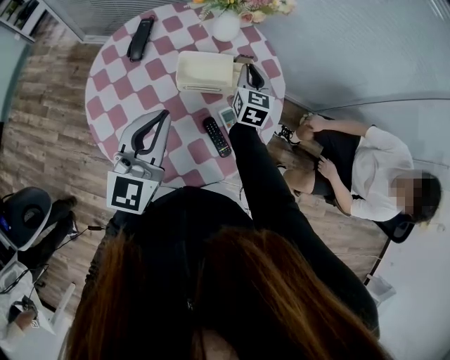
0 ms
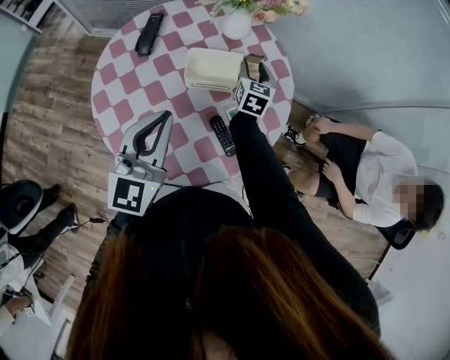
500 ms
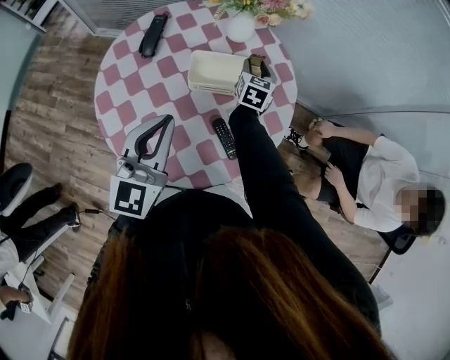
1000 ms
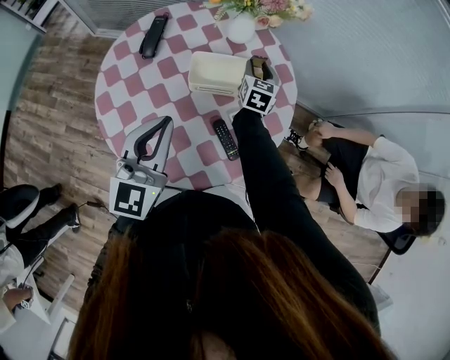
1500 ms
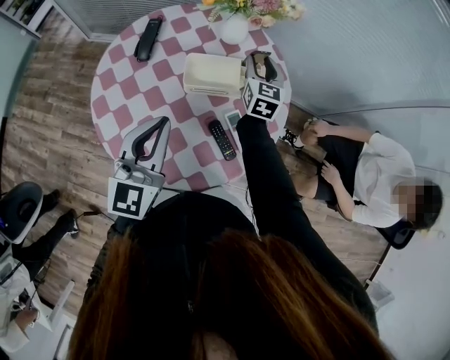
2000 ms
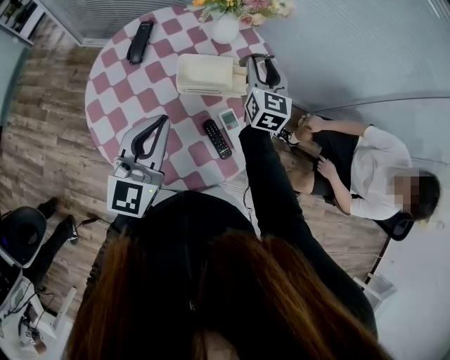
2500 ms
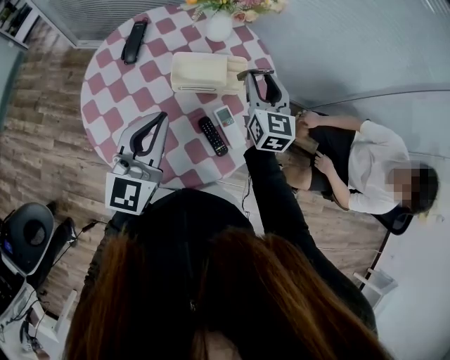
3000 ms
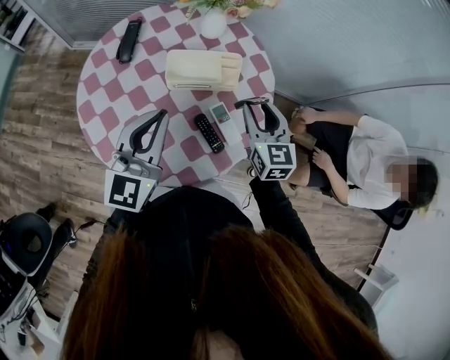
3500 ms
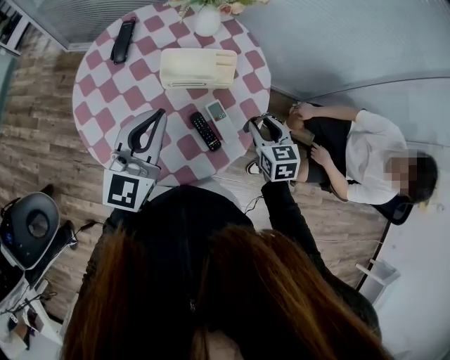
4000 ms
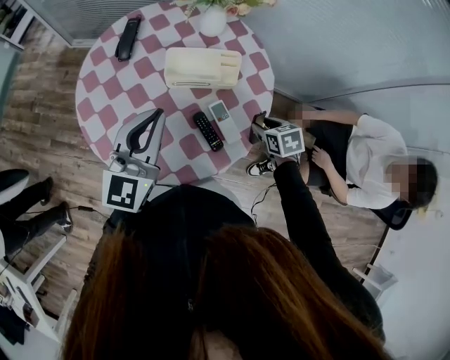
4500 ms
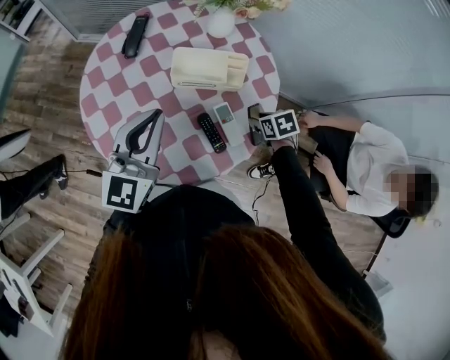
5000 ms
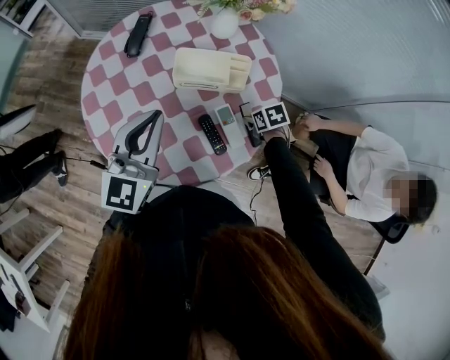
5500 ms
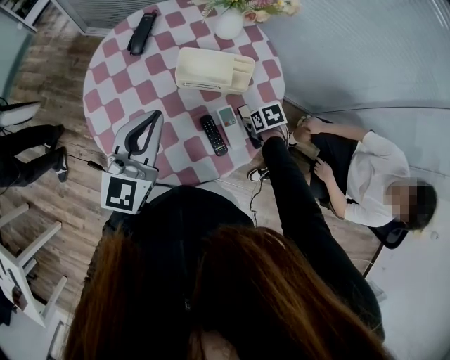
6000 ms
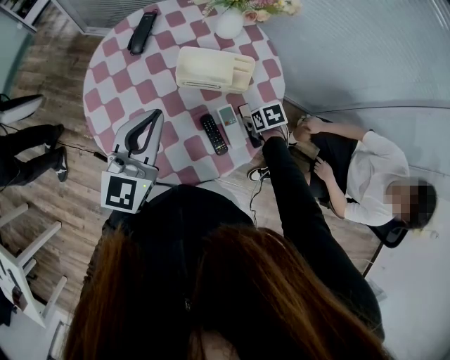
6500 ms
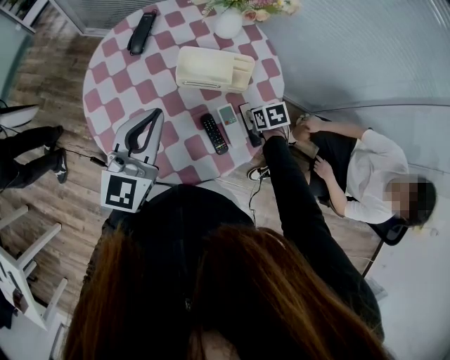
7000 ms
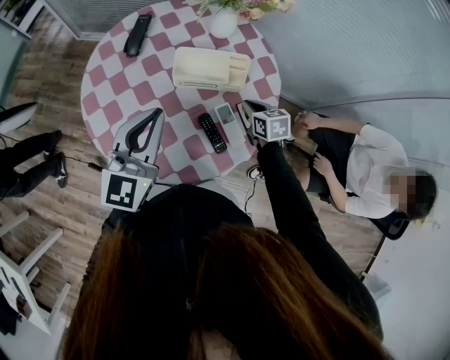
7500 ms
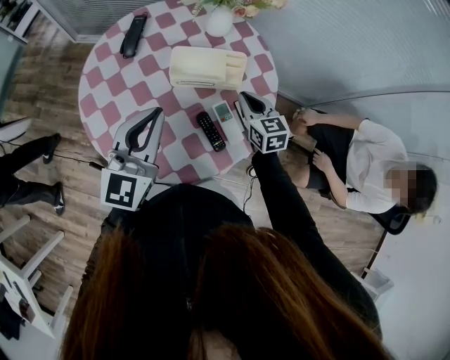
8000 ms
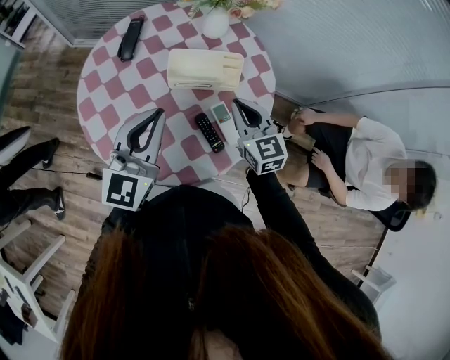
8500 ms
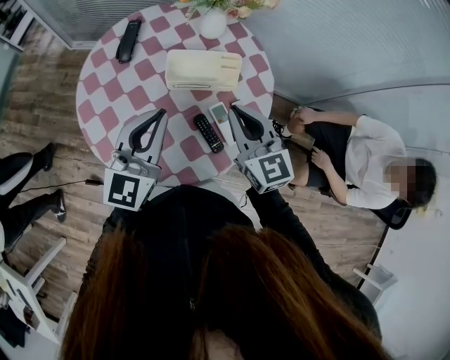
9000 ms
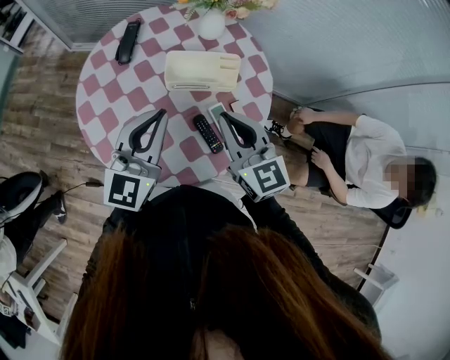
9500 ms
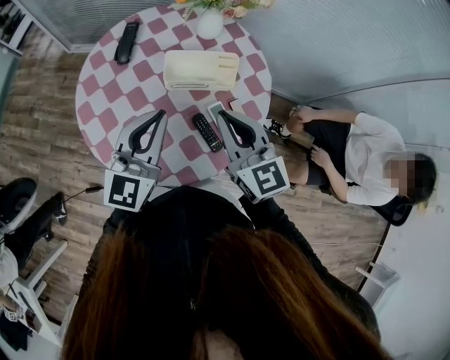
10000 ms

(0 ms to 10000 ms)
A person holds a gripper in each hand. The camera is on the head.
0 ms - 2000 ms: The right gripper opens its fingers.
2000 ms - 4000 ms: The right gripper goes some 25 cm backward and to the right, and swivels about 20 degrees.
4000 ms - 6000 ms: The right gripper moves downward, some 15 cm, and tips its fingers downward by approximately 30 degrees.
6000 ms - 8000 ms: The right gripper heads upward, covering approximately 15 cm, tilts its fingers about 40 degrees upward, and closes.
8000 ms - 10000 ms: The right gripper moves upward, backward and to the left, some 20 cm.

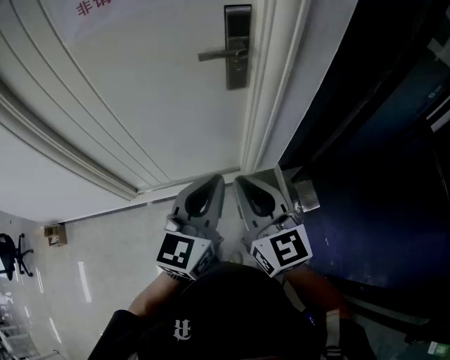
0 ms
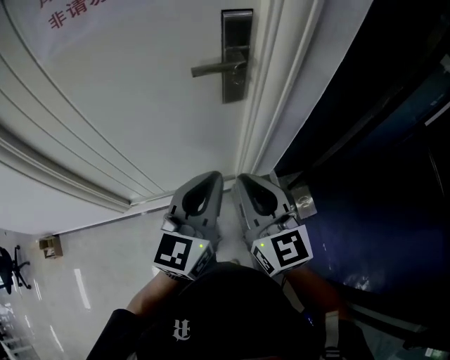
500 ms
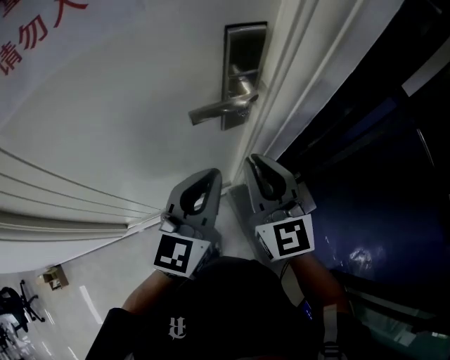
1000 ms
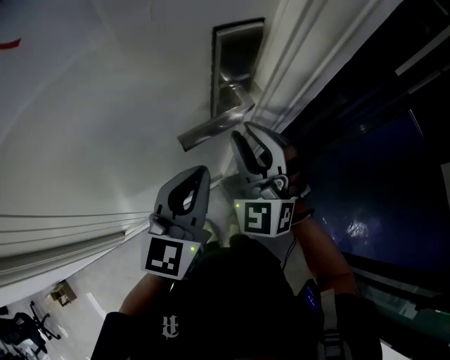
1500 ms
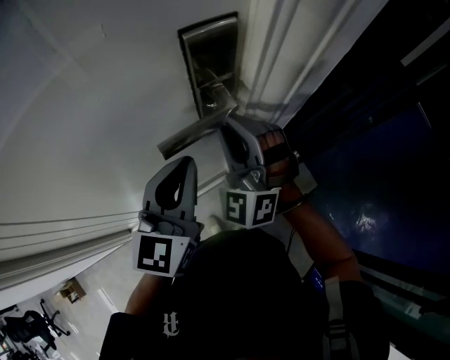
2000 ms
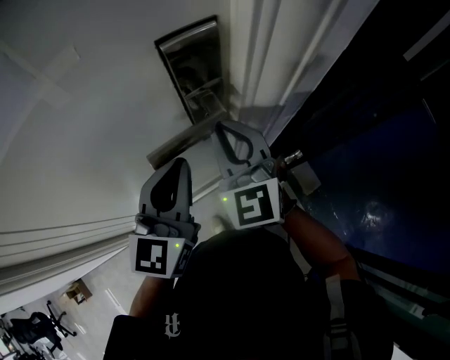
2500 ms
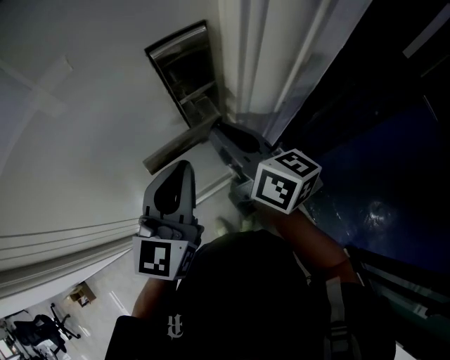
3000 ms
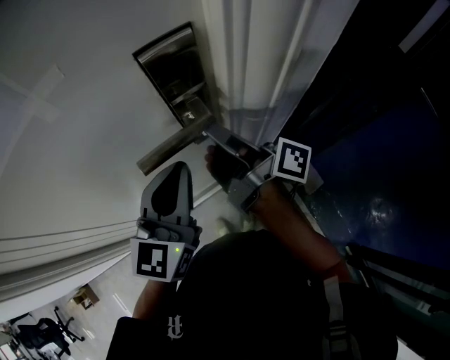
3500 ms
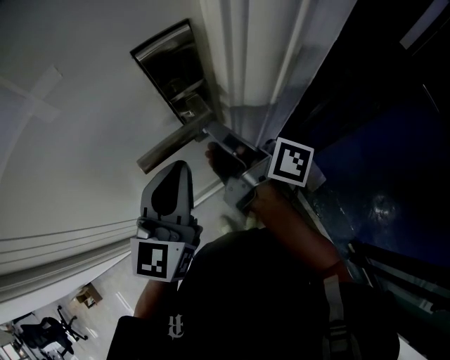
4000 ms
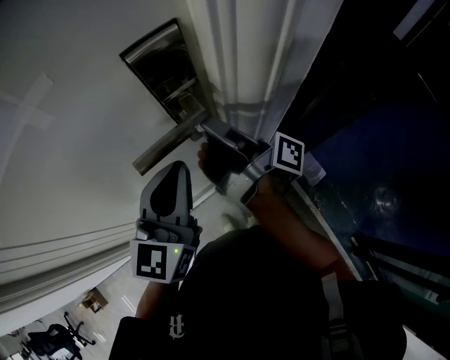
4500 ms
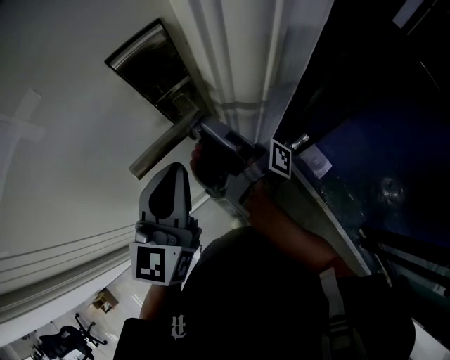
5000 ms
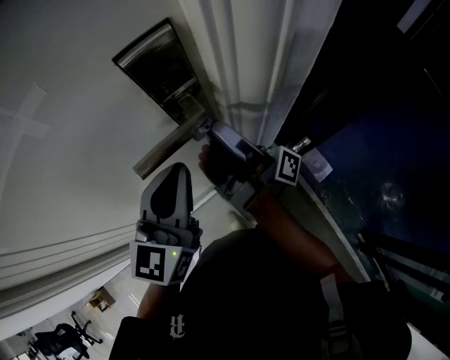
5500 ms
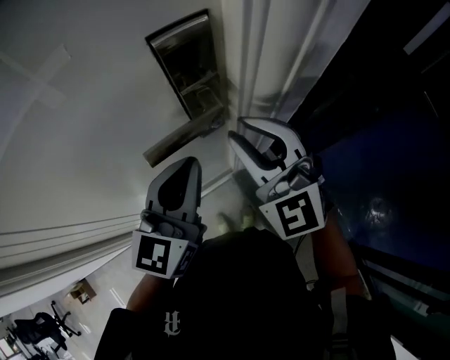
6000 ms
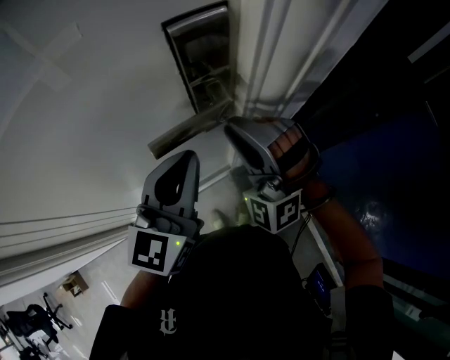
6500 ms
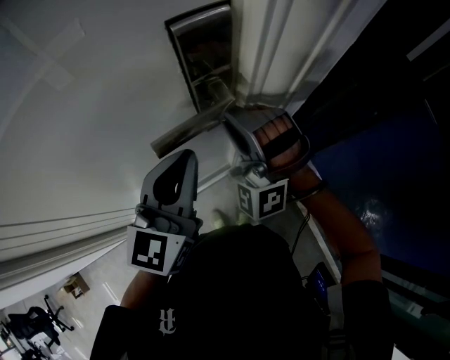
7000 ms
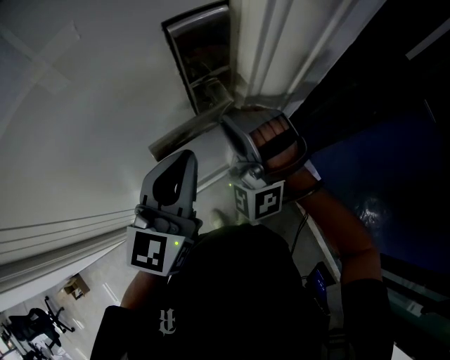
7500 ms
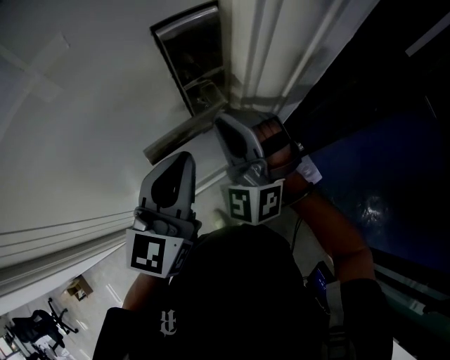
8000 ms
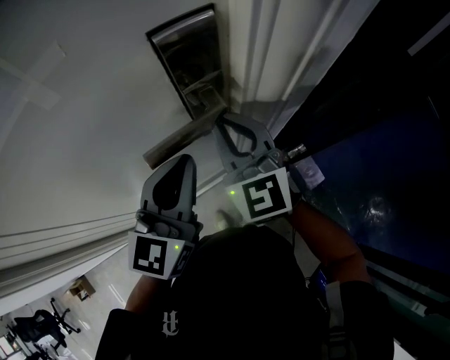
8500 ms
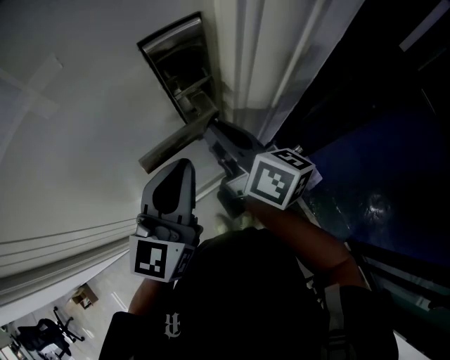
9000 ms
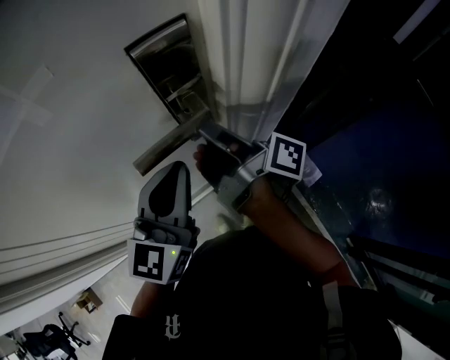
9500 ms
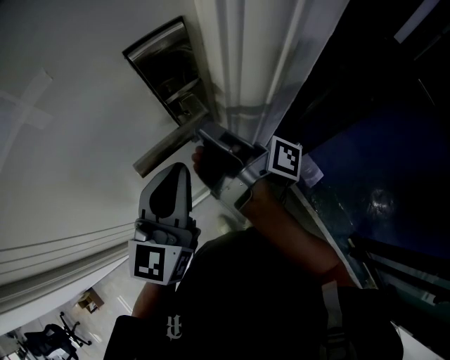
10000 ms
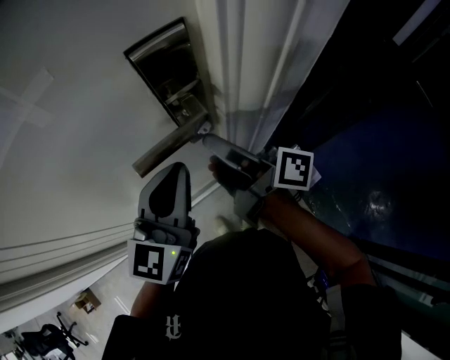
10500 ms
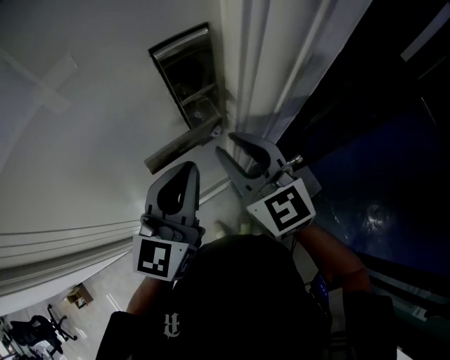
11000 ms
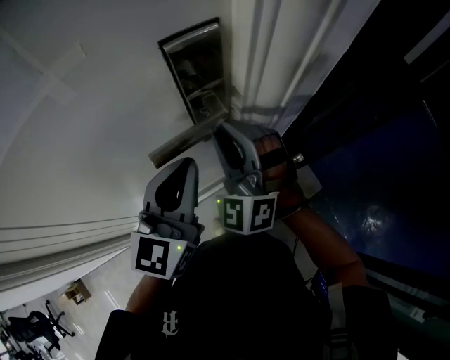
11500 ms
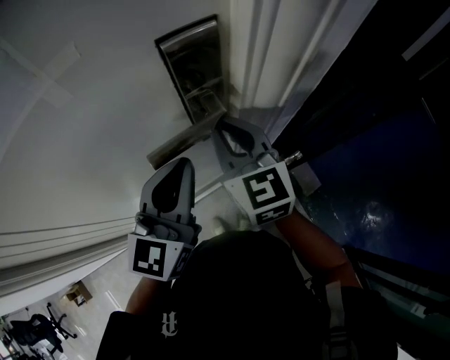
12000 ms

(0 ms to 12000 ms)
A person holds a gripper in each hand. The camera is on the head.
0 ms - 2000 ms: Both grippers move forward, about 30 cm. The right gripper rotates around the line of its fingers by roughly 60 degrees, counterclockwise from behind.
2000 ms - 4000 ms: The right gripper rotates around the line of its fingers by roughly 130 degrees, clockwise from behind.
4000 ms - 6000 ms: The right gripper heads backward, covering about 5 cm, and twists about 110 degrees counterclockwise, seen from behind.
6000 ms - 8000 ms: The right gripper changes place by roughly 5 cm, and turns by about 30 degrees.
8000 ms - 10000 ms: The right gripper rotates around the line of its fingers by about 160 degrees, clockwise from behind.
10000 ms - 12000 ms: The right gripper rotates around the line of its fingers by some 100 degrees, counterclockwise from behind.

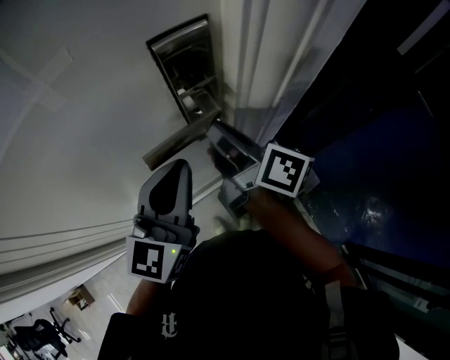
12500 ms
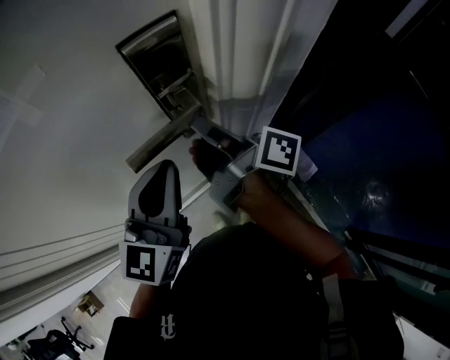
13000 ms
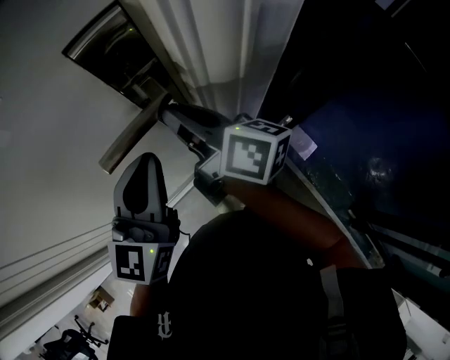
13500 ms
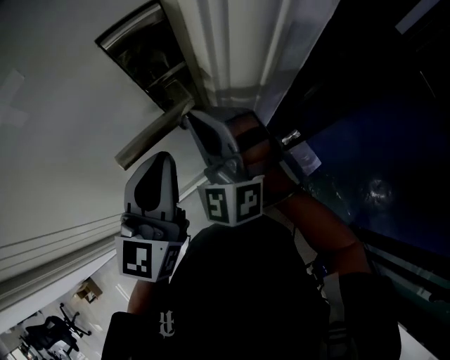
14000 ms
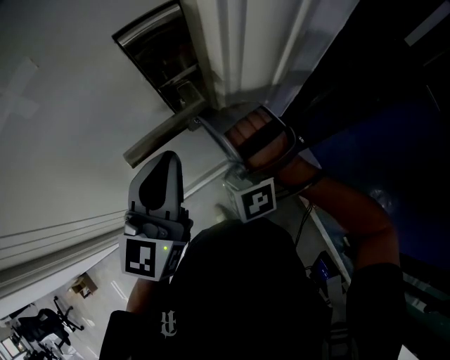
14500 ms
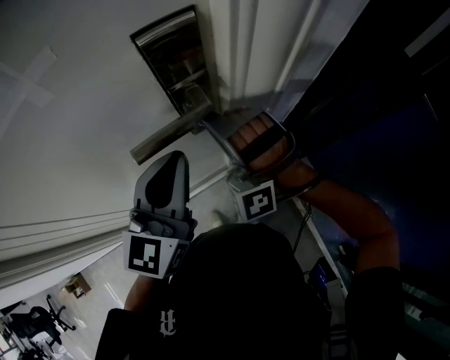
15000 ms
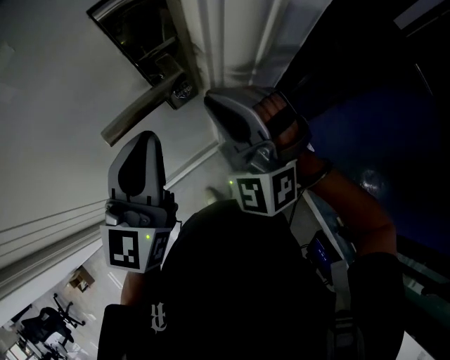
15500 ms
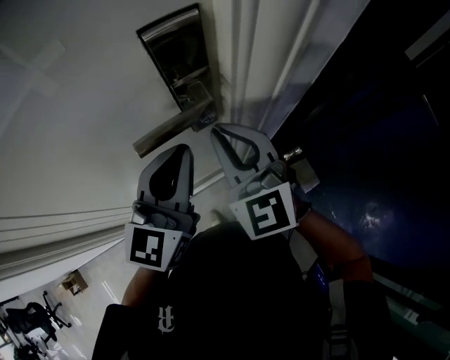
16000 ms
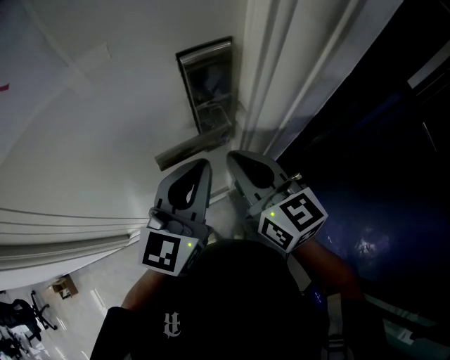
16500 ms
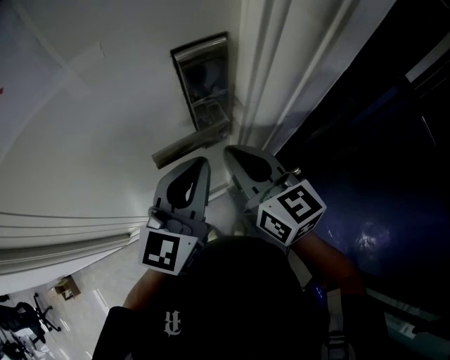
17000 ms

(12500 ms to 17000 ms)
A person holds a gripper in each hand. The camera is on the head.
12500 ms - 14500 ms: The right gripper twists approximately 150 degrees counterclockwise, seen from behind.
14500 ms - 17000 ms: The right gripper rolls clockwise, seen from behind, by about 100 degrees.
